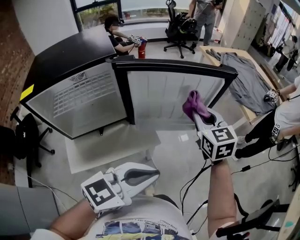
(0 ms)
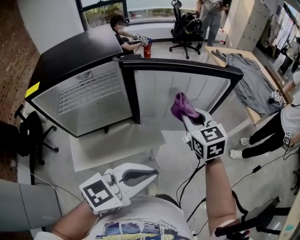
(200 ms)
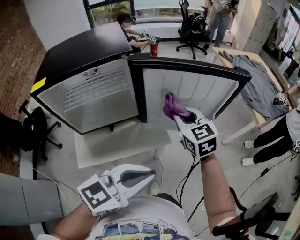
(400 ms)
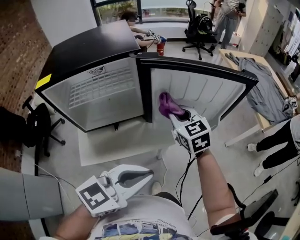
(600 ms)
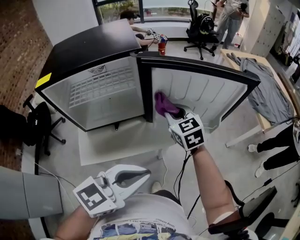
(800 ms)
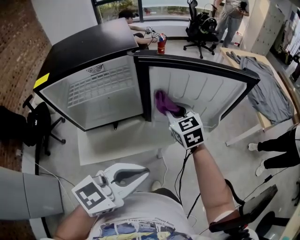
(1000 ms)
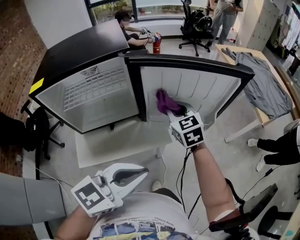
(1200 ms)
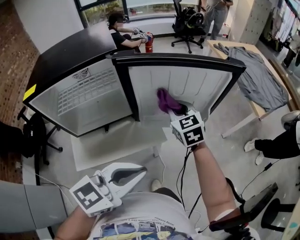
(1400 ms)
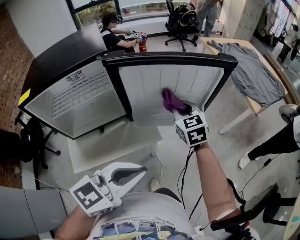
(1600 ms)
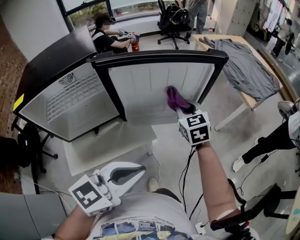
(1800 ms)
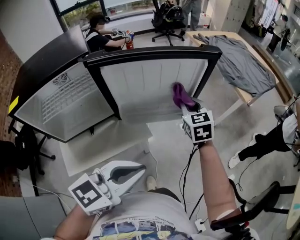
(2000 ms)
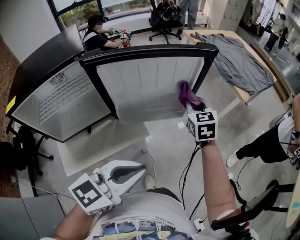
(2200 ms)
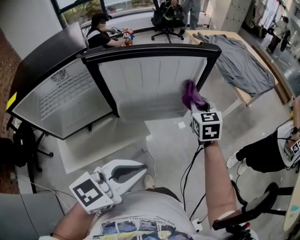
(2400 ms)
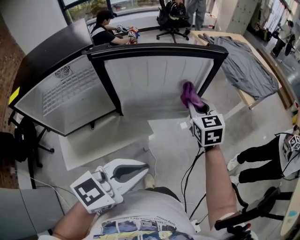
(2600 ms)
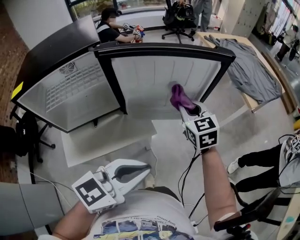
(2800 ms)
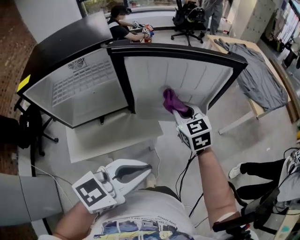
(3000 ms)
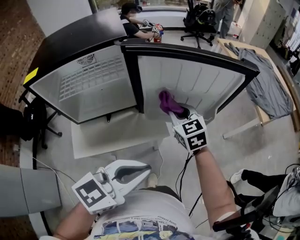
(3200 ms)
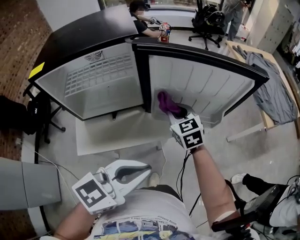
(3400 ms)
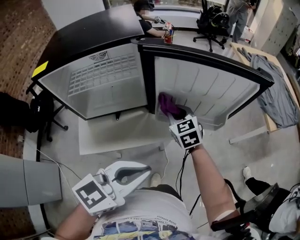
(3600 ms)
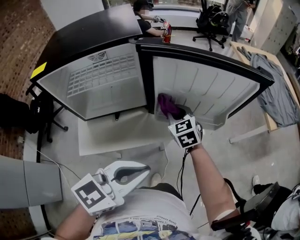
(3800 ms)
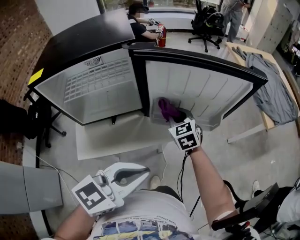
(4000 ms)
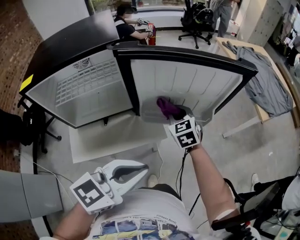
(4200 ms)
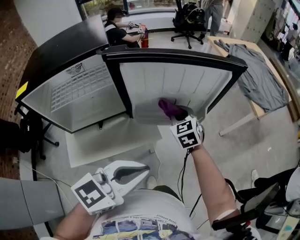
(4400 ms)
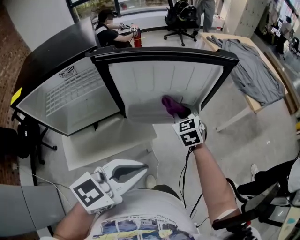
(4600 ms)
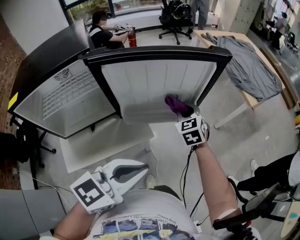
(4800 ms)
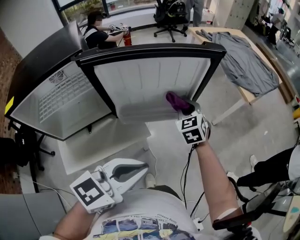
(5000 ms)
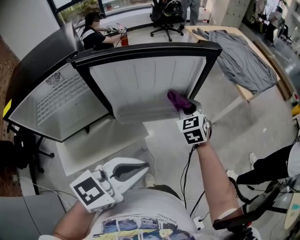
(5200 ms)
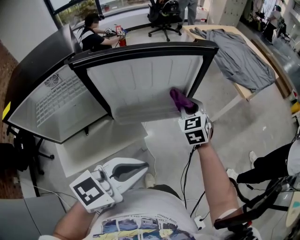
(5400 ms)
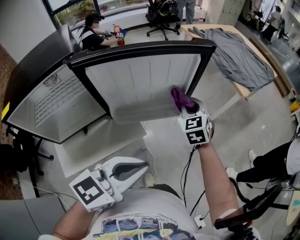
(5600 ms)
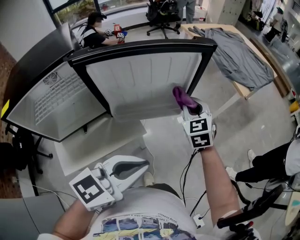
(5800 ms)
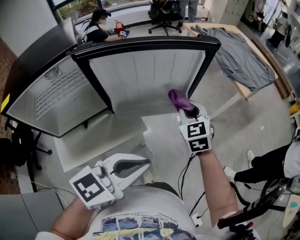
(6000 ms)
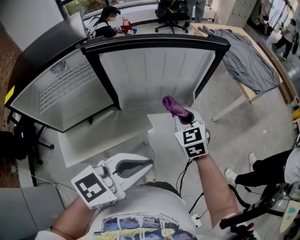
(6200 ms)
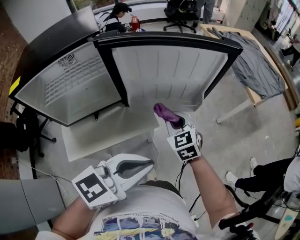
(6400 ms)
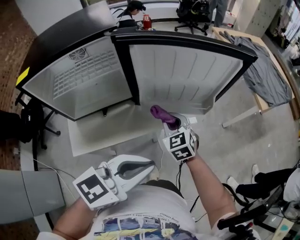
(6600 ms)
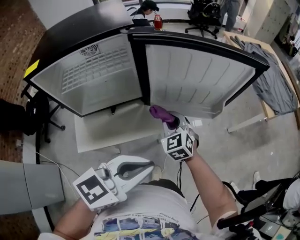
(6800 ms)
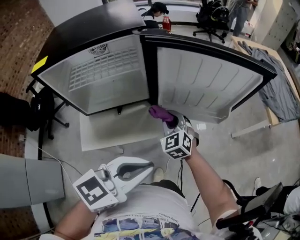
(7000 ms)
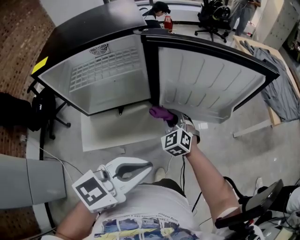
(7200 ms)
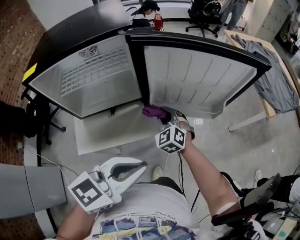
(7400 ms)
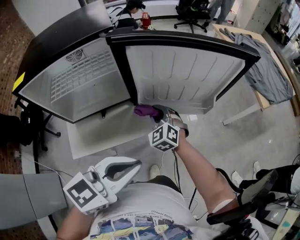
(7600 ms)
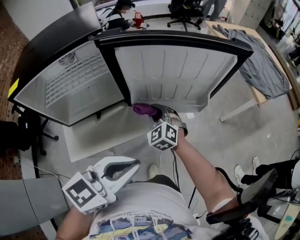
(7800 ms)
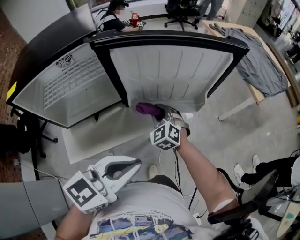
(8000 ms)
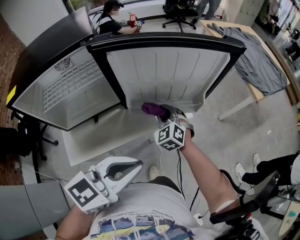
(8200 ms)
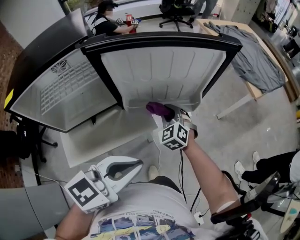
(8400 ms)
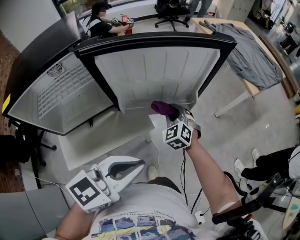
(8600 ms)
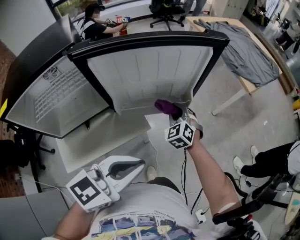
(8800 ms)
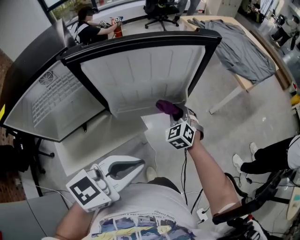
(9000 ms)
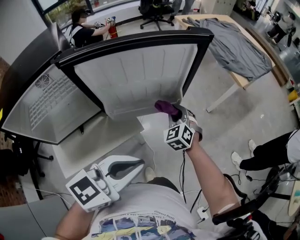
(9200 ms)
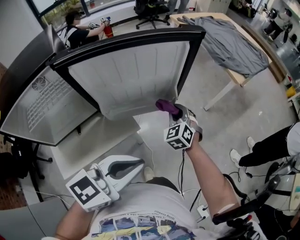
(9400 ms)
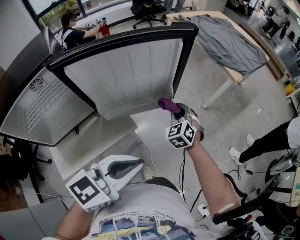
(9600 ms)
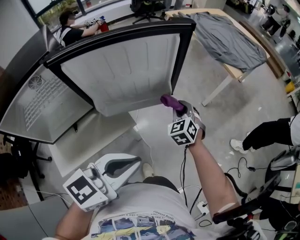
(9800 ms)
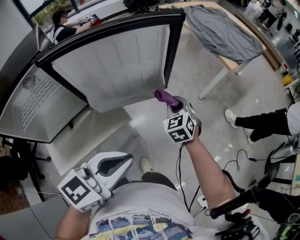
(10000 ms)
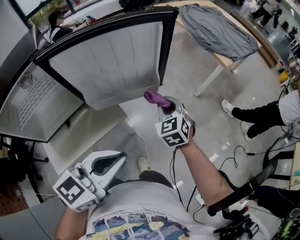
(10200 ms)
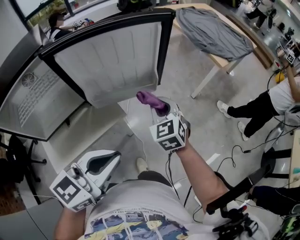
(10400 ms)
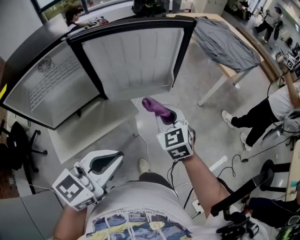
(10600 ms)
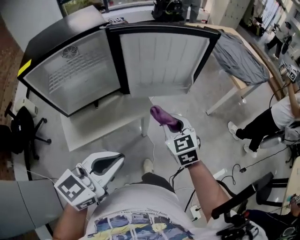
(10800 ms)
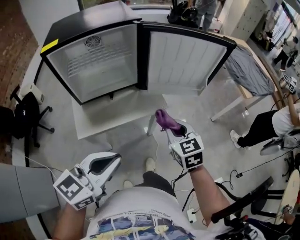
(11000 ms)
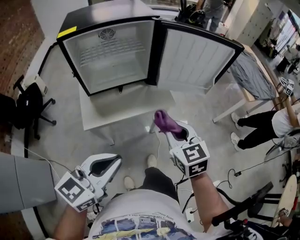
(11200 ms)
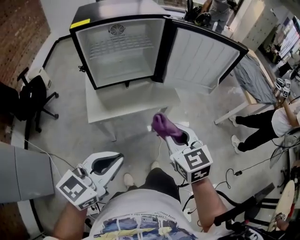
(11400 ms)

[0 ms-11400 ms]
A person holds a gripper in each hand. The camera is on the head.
0 ms to 1400 ms: The right gripper moves to the left and downward, approximately 15 cm.
1400 ms to 2800 ms: The right gripper heads to the right, covering approximately 10 cm.
2800 ms to 4200 ms: The right gripper heads to the left and downward, covering approximately 15 cm.
4200 ms to 5600 ms: The left gripper is displaced to the right by about 5 cm. Meanwhile the right gripper heads to the right, covering about 15 cm, and changes its angle by roughly 20 degrees.
5600 ms to 7200 ms: The left gripper travels to the left and backward by approximately 10 cm. The right gripper moves to the left and backward, some 30 cm, and swivels roughly 40 degrees.
7200 ms to 8600 ms: The right gripper shifts some 15 cm to the right and forward; the left gripper moves to the right, roughly 5 cm.
8600 ms to 10000 ms: The right gripper heads to the right, covering about 15 cm, and turns by about 20 degrees.
10000 ms to 11400 ms: The right gripper shifts by roughly 40 cm, and swivels about 40 degrees; the left gripper changes place by approximately 30 cm, and changes its angle by roughly 30 degrees.

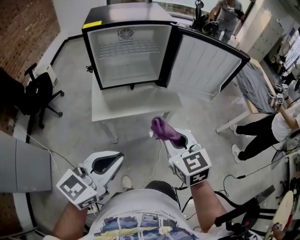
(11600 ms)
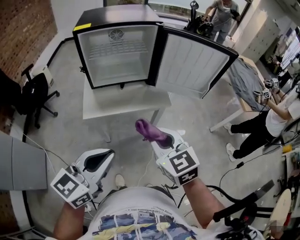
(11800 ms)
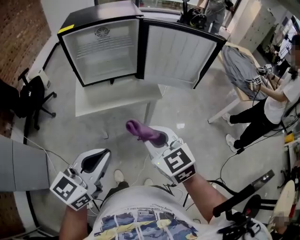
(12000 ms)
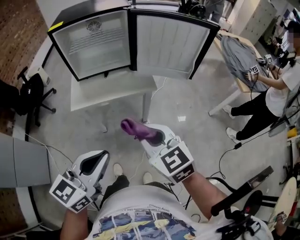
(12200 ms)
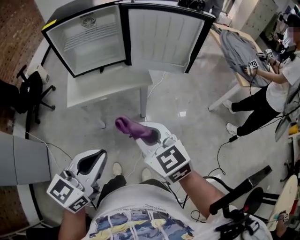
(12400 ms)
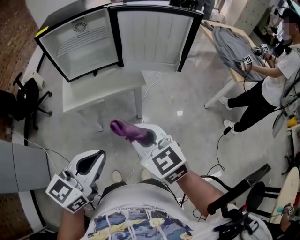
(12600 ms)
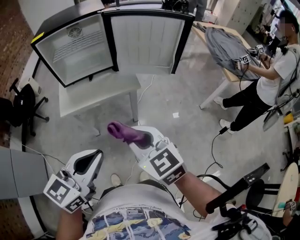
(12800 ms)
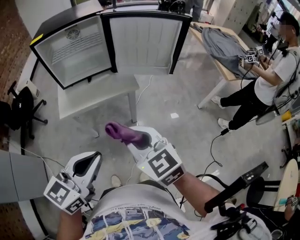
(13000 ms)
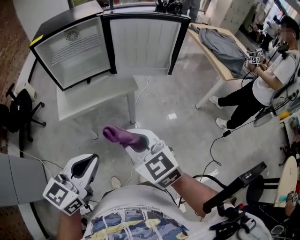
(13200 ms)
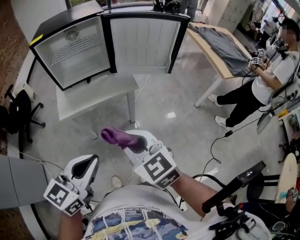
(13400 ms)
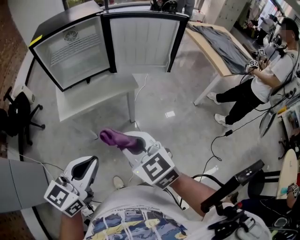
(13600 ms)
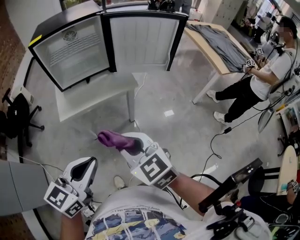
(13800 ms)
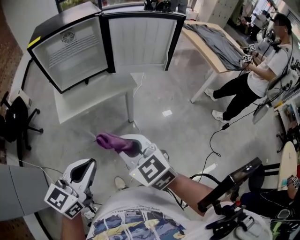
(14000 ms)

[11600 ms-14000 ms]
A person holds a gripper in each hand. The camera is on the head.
11600 ms to 12800 ms: The left gripper shifts about 15 cm to the right and backward. The right gripper moves backward and to the right, about 10 cm.
12800 ms to 14000 ms: The two grippers go approximately 10 cm to the left.

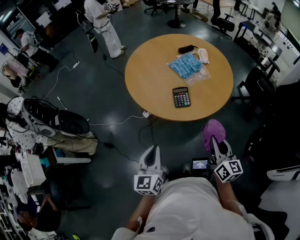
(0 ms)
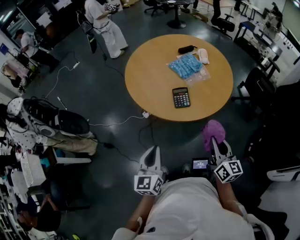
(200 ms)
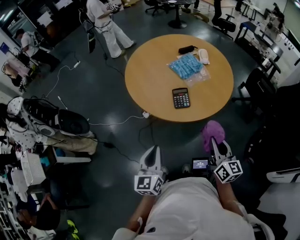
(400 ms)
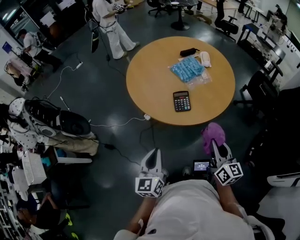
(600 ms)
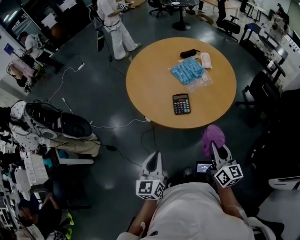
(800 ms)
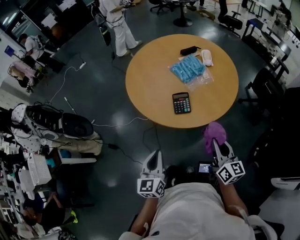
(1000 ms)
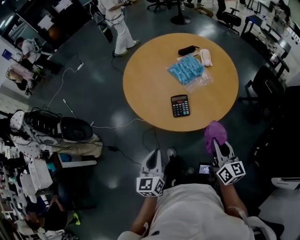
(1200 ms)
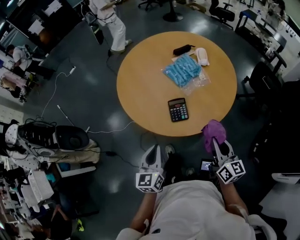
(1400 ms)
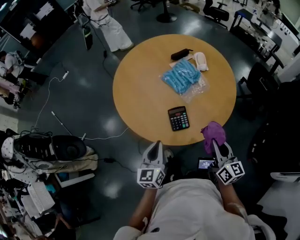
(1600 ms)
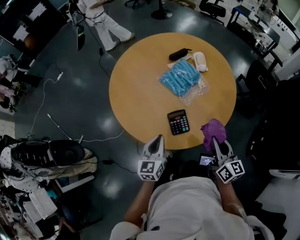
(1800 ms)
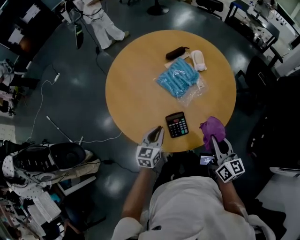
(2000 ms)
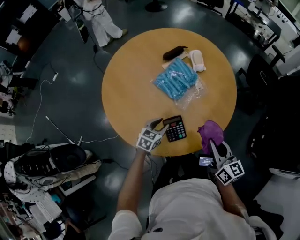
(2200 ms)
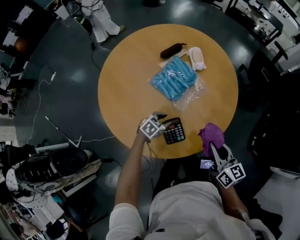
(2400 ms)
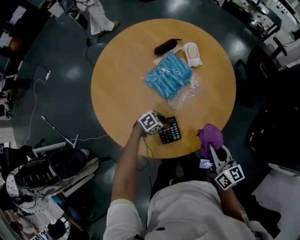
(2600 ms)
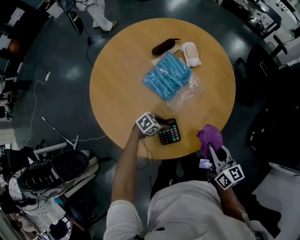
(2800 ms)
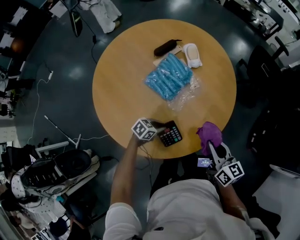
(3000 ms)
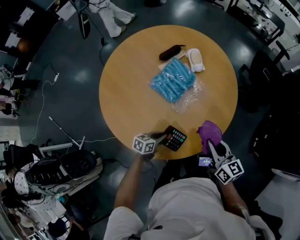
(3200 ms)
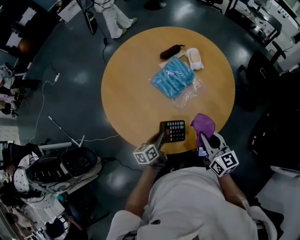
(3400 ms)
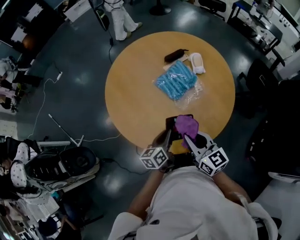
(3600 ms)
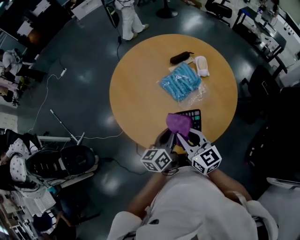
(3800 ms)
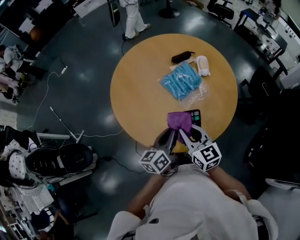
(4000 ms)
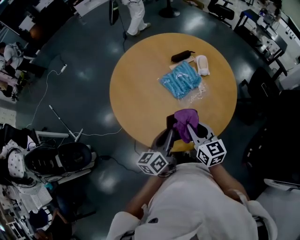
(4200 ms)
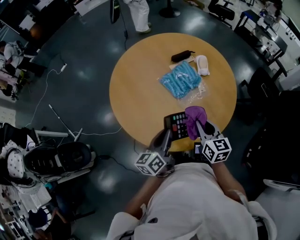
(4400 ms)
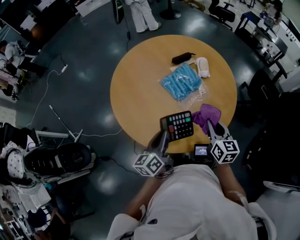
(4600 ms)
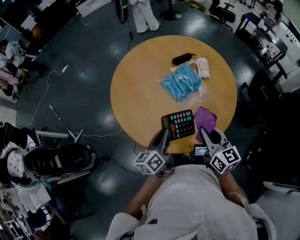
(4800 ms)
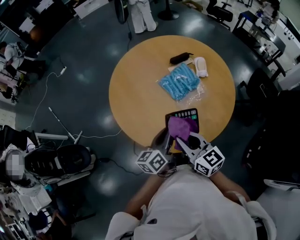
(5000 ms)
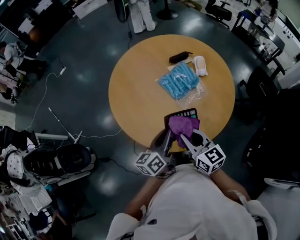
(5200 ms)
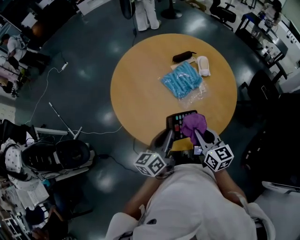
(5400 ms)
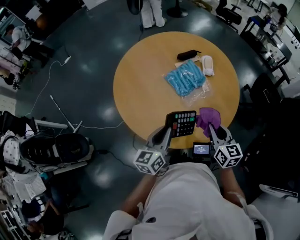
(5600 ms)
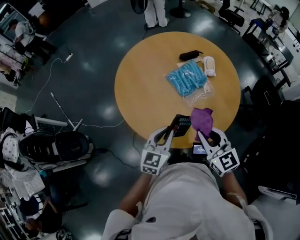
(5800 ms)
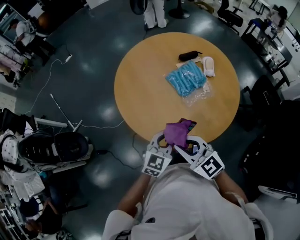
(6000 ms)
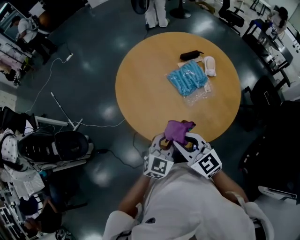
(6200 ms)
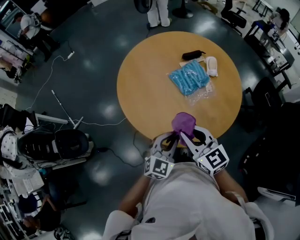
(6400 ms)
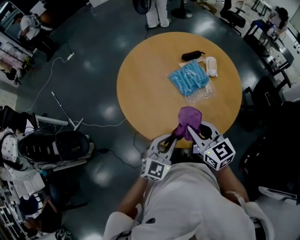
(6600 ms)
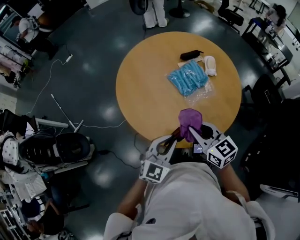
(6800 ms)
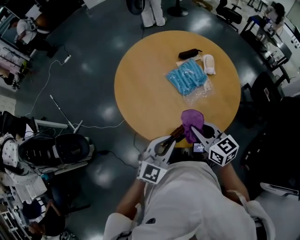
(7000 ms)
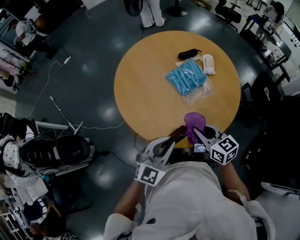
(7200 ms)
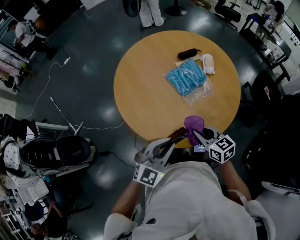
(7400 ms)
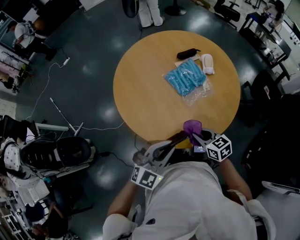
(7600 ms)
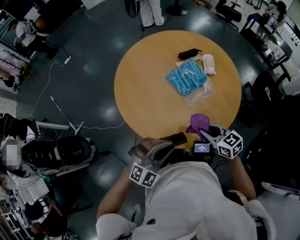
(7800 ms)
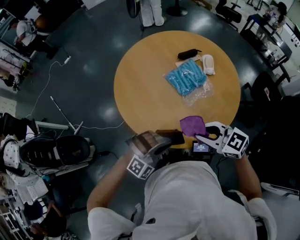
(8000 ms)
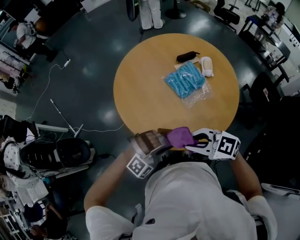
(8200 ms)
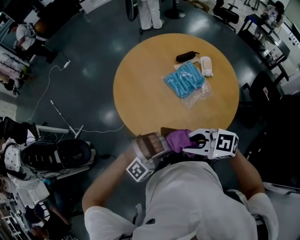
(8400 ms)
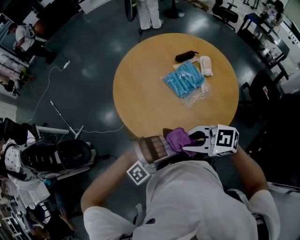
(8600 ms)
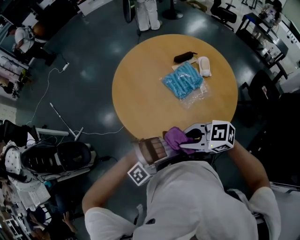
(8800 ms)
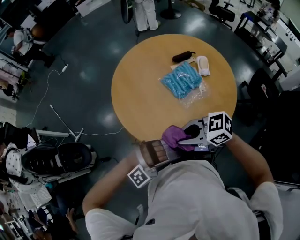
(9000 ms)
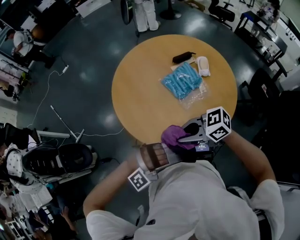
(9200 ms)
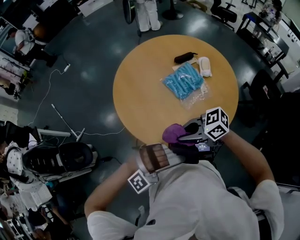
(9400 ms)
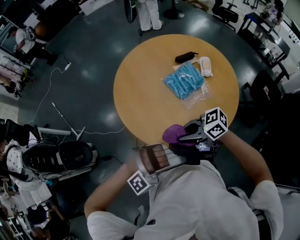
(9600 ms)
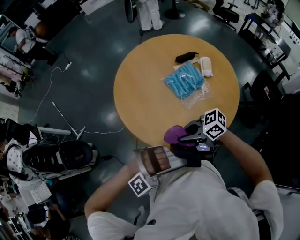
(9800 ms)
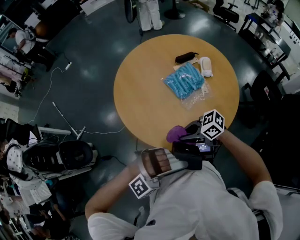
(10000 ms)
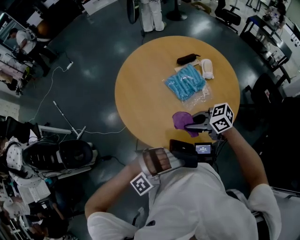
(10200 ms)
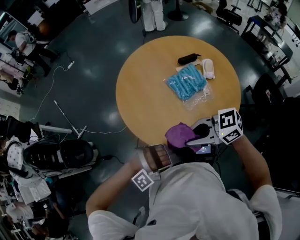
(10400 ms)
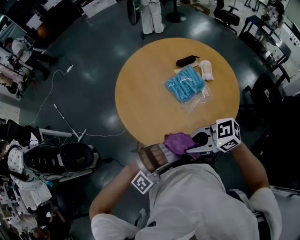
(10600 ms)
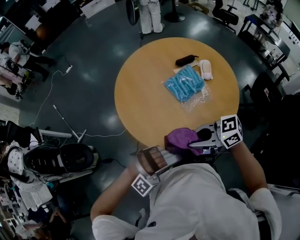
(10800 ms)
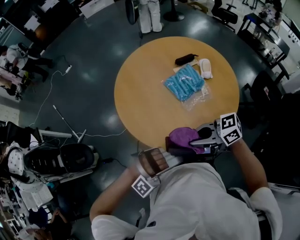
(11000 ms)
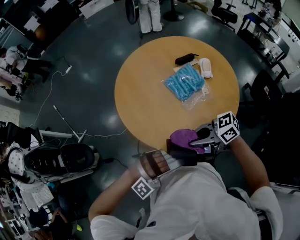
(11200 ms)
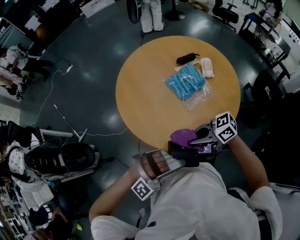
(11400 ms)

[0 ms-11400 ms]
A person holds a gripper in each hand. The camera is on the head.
0 ms to 1400 ms: The right gripper goes approximately 15 cm forward and to the right. Meanwhile the left gripper travels forward by roughly 15 cm.
1400 ms to 2800 ms: The right gripper moves approximately 15 cm. The left gripper shifts by approximately 40 cm, tilts its fingers some 40 degrees downward, and opens.
2800 ms to 4200 ms: The right gripper changes place by about 15 cm, and changes its angle by approximately 20 degrees. Meanwhile the left gripper shifts some 25 cm upward, and tilts its fingers approximately 40 degrees upward.
4200 ms to 5600 ms: The right gripper moves left and right over some 15 cm, changing direction 2 times.
5600 ms to 7200 ms: The left gripper ends up approximately 5 cm from where it was, and rotates around the line of its fingers by about 40 degrees, clockwise from behind, while the right gripper goes about 10 cm to the left, and swivels roughly 20 degrees.
7200 ms to 8600 ms: The right gripper shifts by some 10 cm, and rotates roughly 50 degrees, while the left gripper changes place by approximately 5 cm, and twists approximately 70 degrees clockwise, seen from behind.
8600 ms to 10000 ms: The left gripper changes place by about 5 cm; the right gripper heads downward, covering some 10 cm, and changes its angle by approximately 30 degrees.
